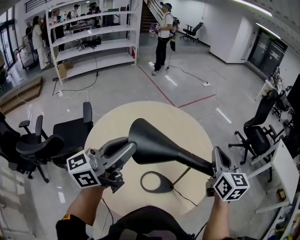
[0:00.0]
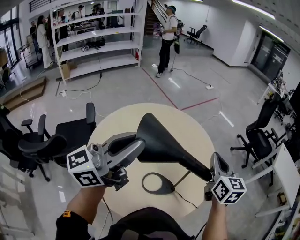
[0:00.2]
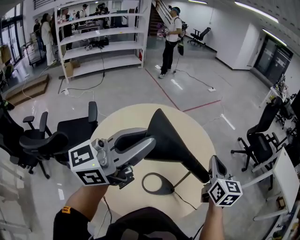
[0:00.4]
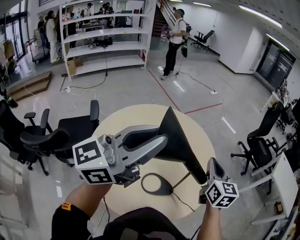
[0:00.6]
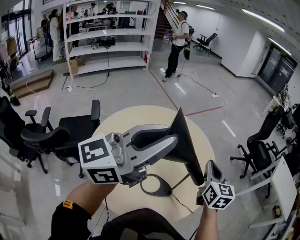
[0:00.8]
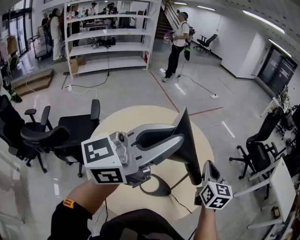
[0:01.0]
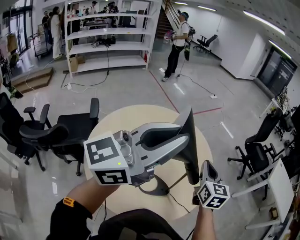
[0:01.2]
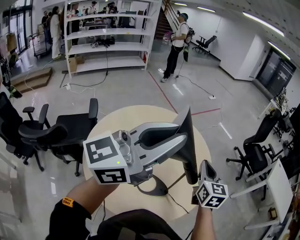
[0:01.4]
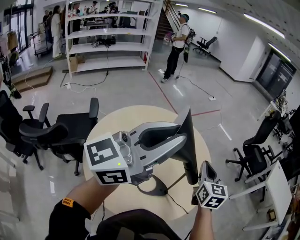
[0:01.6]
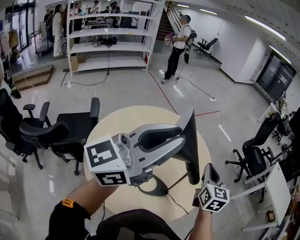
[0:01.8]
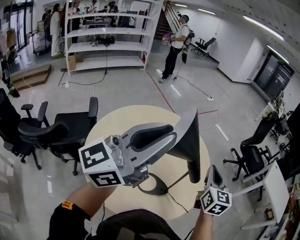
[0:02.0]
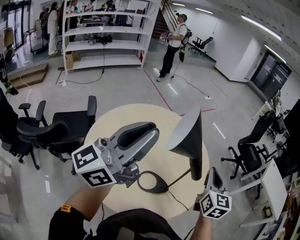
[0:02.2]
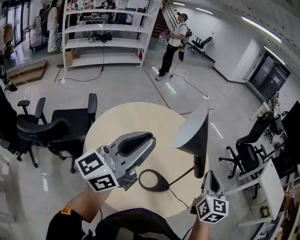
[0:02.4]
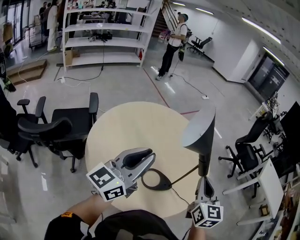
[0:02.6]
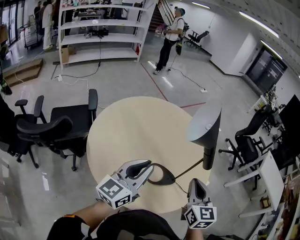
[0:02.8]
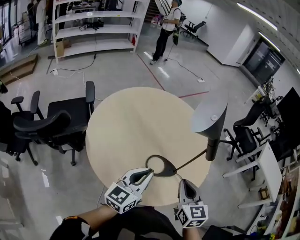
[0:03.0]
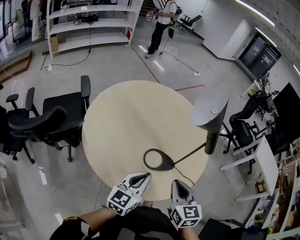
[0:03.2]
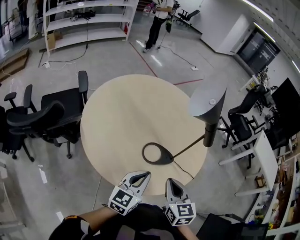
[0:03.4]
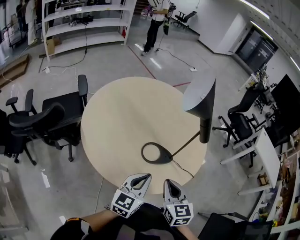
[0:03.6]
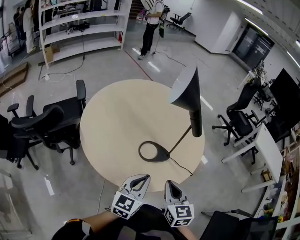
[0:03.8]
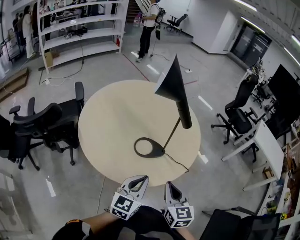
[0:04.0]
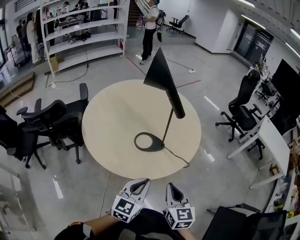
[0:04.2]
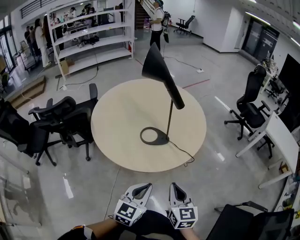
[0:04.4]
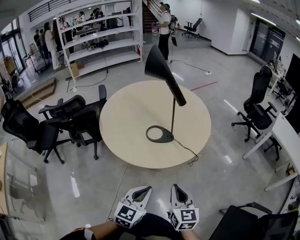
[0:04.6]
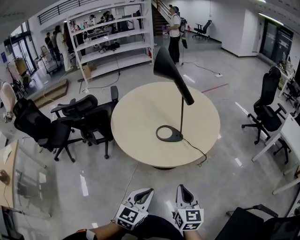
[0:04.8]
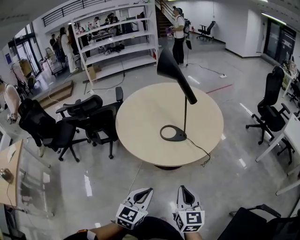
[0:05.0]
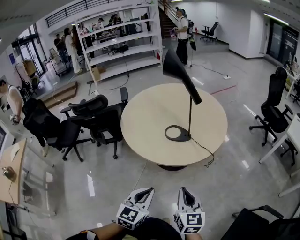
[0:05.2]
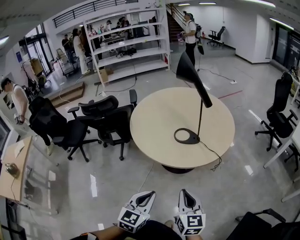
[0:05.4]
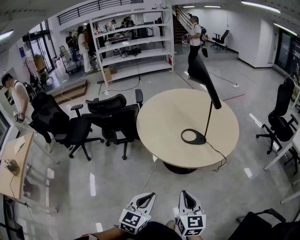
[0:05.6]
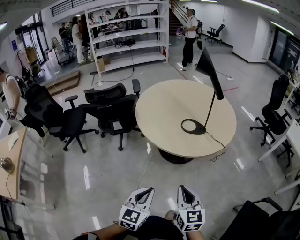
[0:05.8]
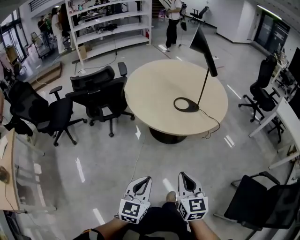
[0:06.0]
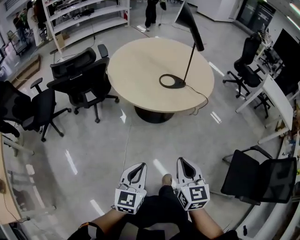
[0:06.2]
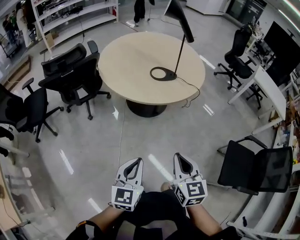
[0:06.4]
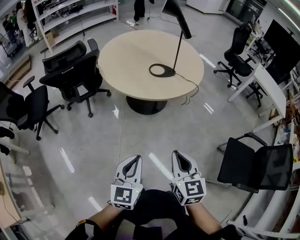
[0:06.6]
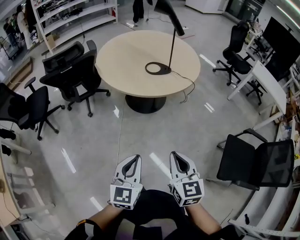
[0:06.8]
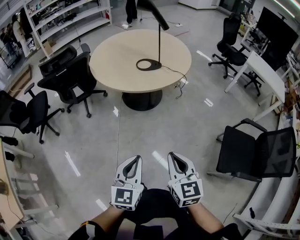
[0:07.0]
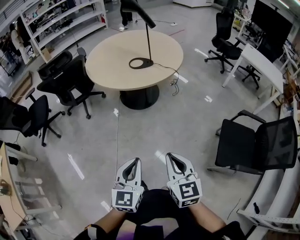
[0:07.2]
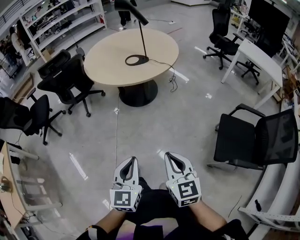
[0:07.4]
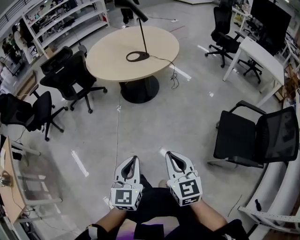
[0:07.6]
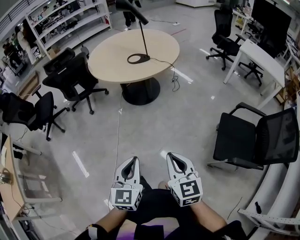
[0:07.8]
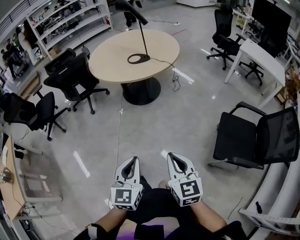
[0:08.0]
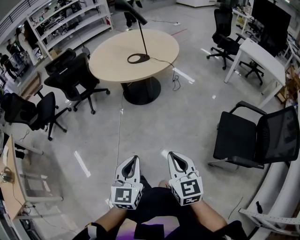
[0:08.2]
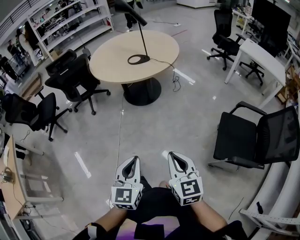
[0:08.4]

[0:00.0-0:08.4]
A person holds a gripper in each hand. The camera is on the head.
0:00.0 to 0:01.4: The right gripper heads downward, covering roughly 5 cm, while the left gripper shifts about 15 cm upward and to the right.
0:01.4 to 0:02.8: The left gripper heads downward, backward and to the left, covering some 30 cm, and rotates approximately 20 degrees, while the right gripper is displaced backward by roughly 20 cm.
0:02.8 to 0:04.2: The grippers both shift backward, to the right and downward by approximately 30 cm. The left gripper swivels about 20 degrees.
0:04.2 to 0:05.6: Both grippers move backward, roughly 25 cm. The left gripper swivels approximately 20 degrees.
0:05.6 to 0:07.0: The two grippers go approximately 25 cm backward.
0:07.0 to 0:08.4: The grippers both shift backward and to the right by some 25 cm.

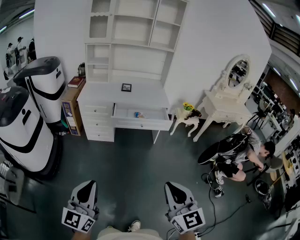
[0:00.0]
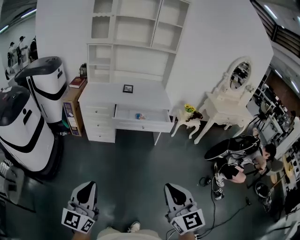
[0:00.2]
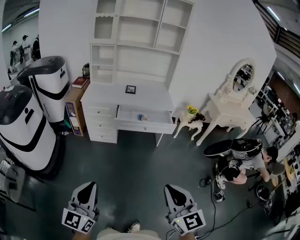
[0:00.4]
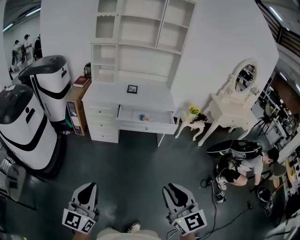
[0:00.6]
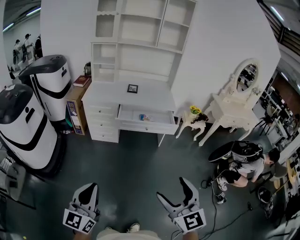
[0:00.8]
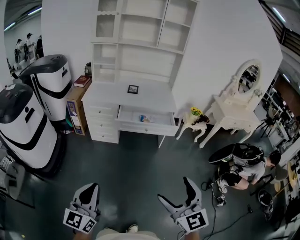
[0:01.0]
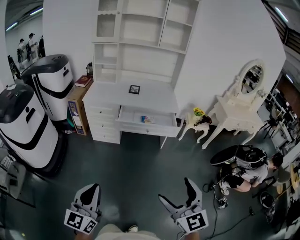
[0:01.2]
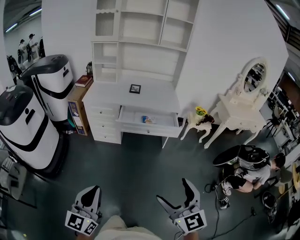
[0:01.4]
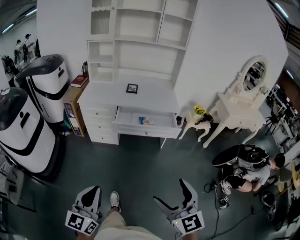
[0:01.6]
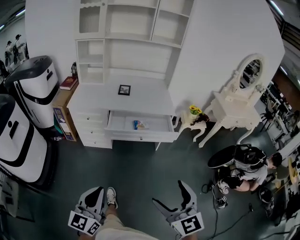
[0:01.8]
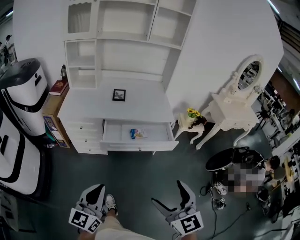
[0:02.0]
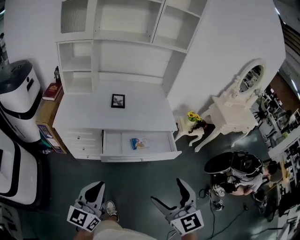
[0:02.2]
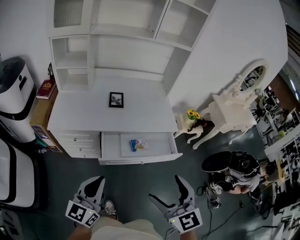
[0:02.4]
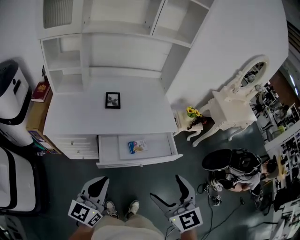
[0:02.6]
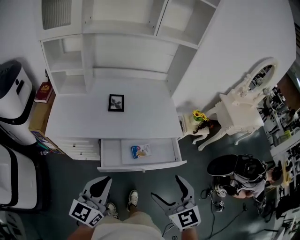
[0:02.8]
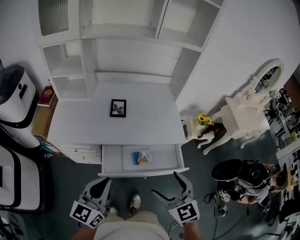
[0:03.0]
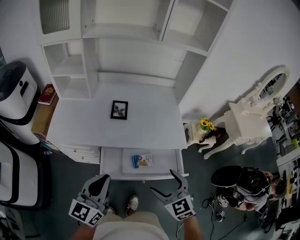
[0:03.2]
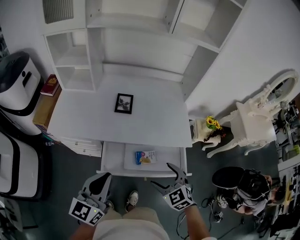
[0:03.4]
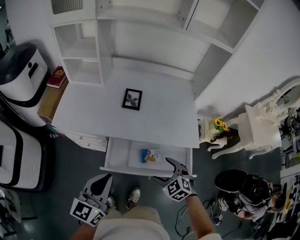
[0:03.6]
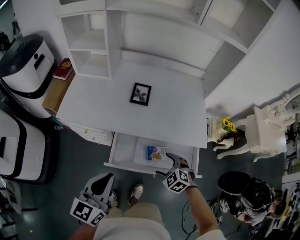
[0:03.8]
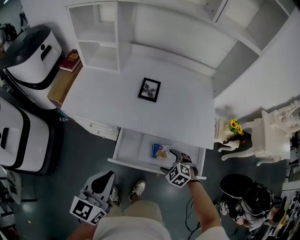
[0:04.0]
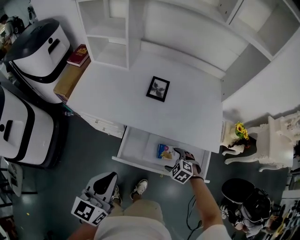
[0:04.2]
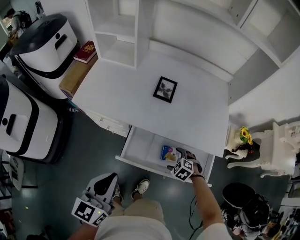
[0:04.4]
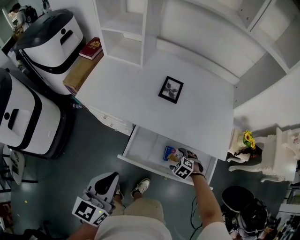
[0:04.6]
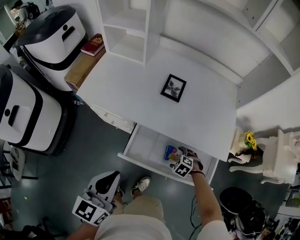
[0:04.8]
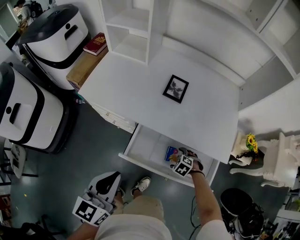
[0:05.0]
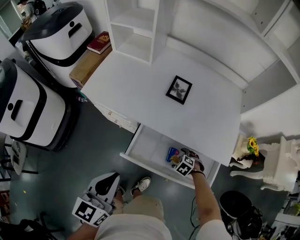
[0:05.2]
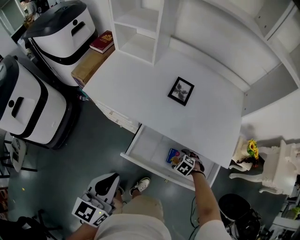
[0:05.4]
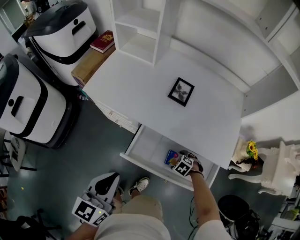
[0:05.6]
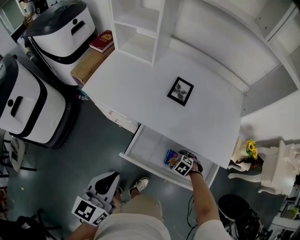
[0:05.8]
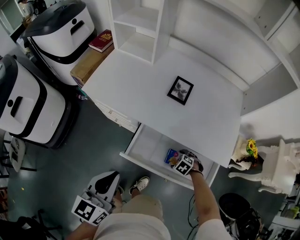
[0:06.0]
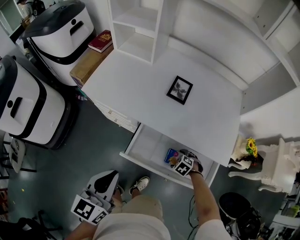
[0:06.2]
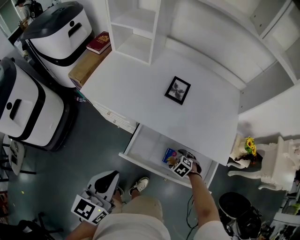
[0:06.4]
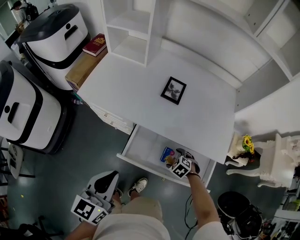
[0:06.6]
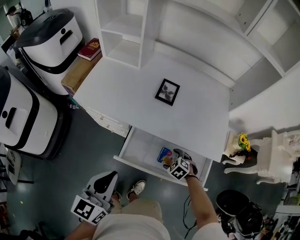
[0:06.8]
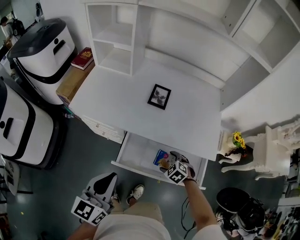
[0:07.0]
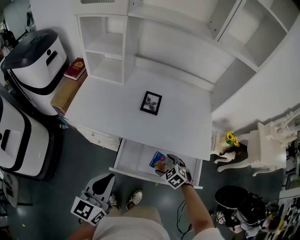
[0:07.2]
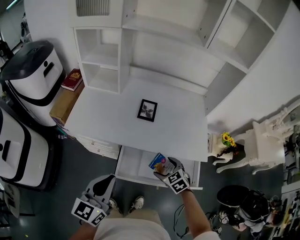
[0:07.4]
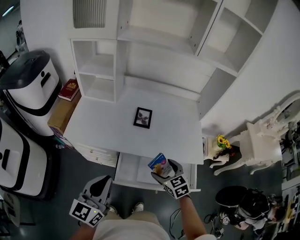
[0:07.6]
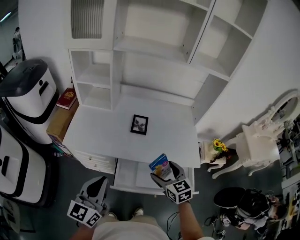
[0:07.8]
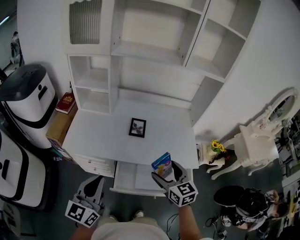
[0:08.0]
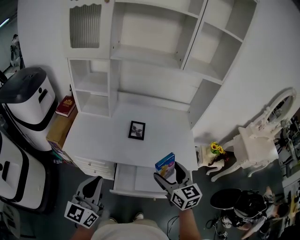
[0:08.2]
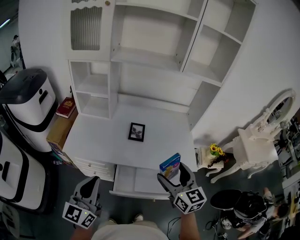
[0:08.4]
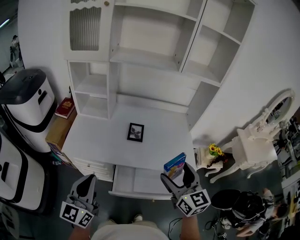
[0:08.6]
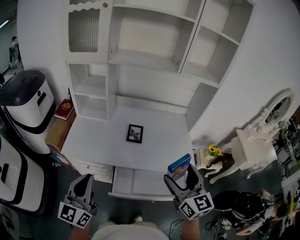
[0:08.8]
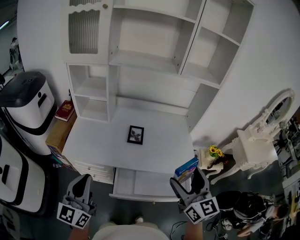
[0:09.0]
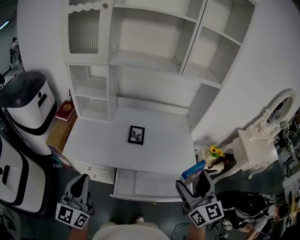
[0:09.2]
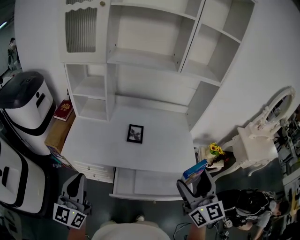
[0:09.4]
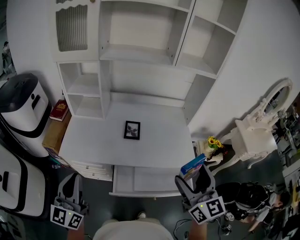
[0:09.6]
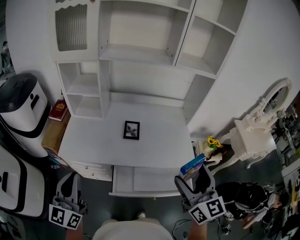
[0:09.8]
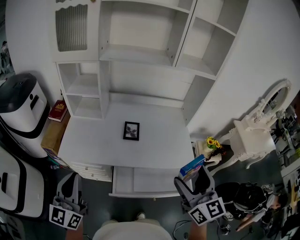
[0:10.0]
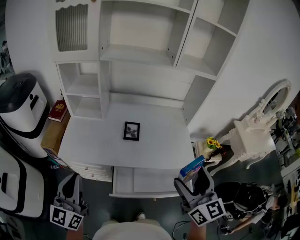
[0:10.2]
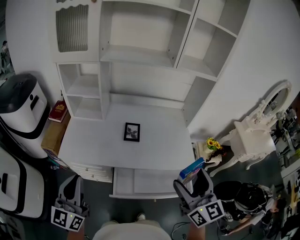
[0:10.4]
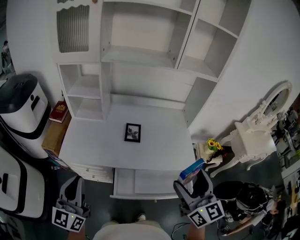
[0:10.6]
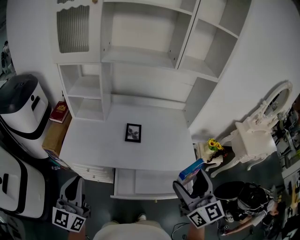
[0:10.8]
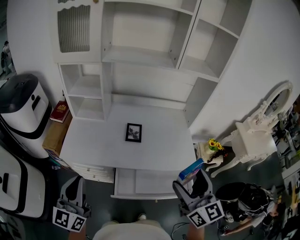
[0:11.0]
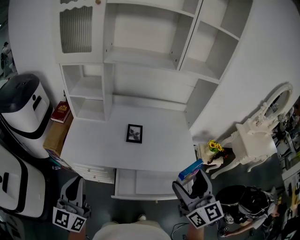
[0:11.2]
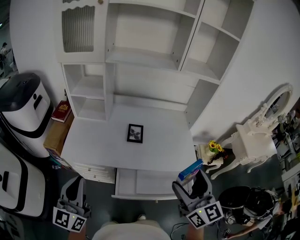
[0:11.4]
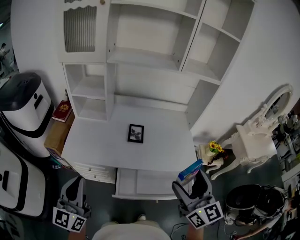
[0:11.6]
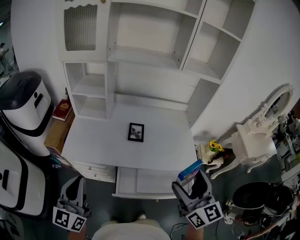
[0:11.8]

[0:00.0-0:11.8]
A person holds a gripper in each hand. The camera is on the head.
0:00.0 to 0:01.4: The two grippers go roughly 10 cm forward and to the right. The right gripper opens up.
0:01.4 to 0:03.0: Both grippers are carried forward, about 60 cm.
0:03.0 to 0:04.4: The right gripper travels downward by approximately 35 cm, and tips its fingers downward by about 50 degrees; the left gripper goes roughly 5 cm downward, and turns by about 20 degrees.
0:04.4 to 0:06.0: The right gripper heads downward, covering approximately 5 cm.
0:06.0 to 0:07.4: The right gripper shifts about 20 cm upward, and tips its fingers upward by about 30 degrees, while the left gripper goes approximately 5 cm upward.
0:07.4 to 0:08.8: The right gripper goes approximately 30 cm upward, and points its fingers roughly 50 degrees further upward. The left gripper shifts approximately 10 cm upward and to the left.
0:08.8 to 0:11.8: The grippers stay close to where they were, moving slightly.

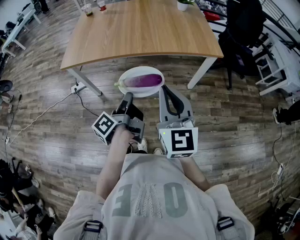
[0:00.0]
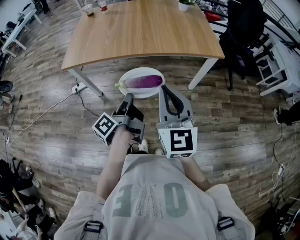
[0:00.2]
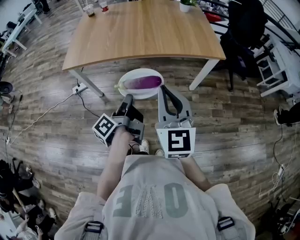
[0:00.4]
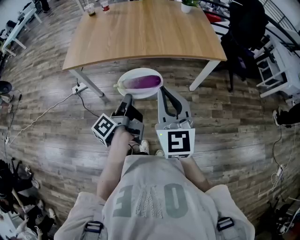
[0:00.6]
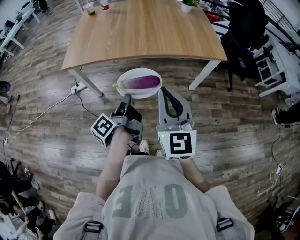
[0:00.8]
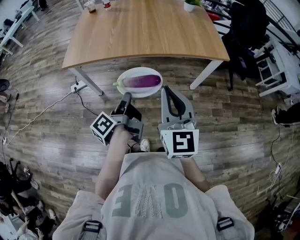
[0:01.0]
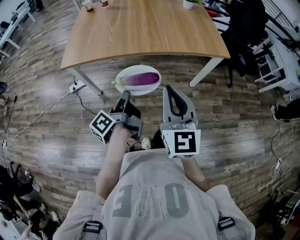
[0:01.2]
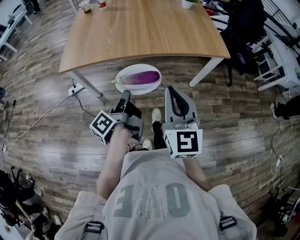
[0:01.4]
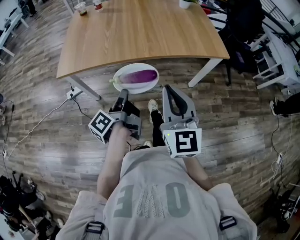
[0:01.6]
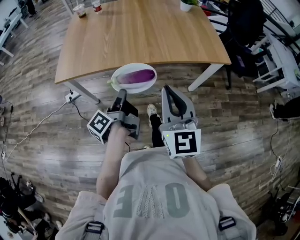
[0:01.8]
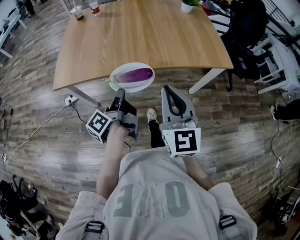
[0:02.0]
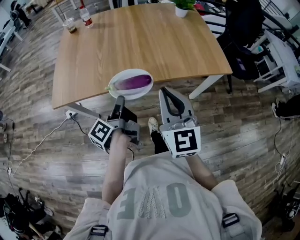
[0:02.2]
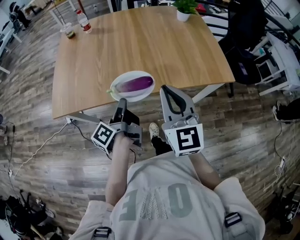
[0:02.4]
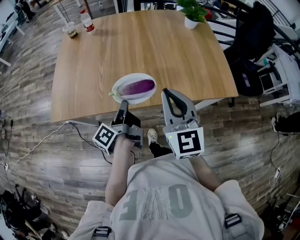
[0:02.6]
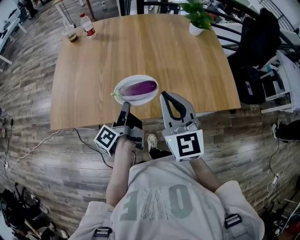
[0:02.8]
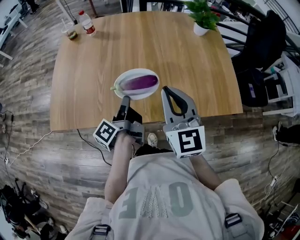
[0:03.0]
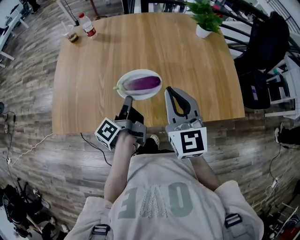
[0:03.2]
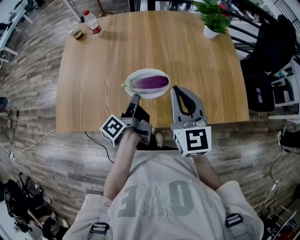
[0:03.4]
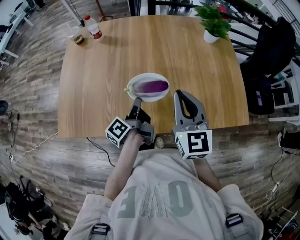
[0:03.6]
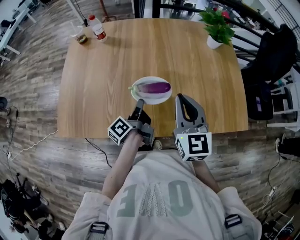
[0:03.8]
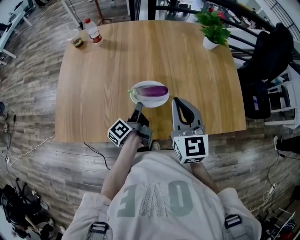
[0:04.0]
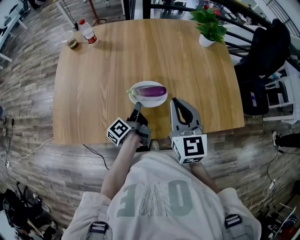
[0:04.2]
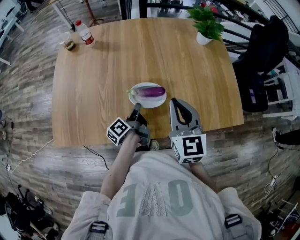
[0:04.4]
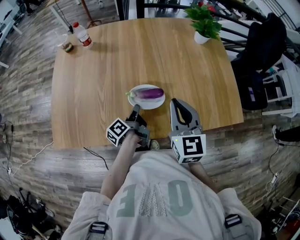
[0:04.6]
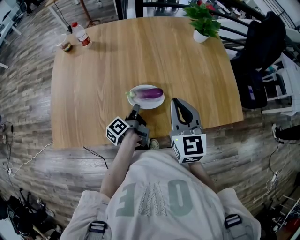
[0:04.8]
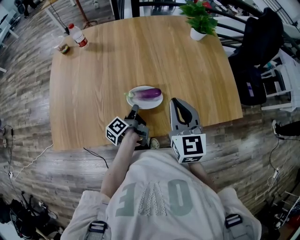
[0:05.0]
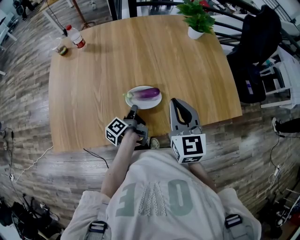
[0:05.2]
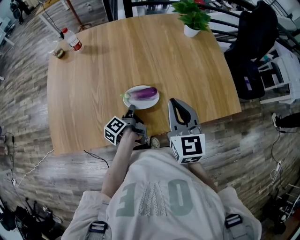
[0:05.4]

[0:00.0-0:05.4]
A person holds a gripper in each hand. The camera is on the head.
0:00.0 to 0:01.4: The right gripper ends up about 10 cm from where it was.
0:01.4 to 0:02.8: The right gripper moves about 35 cm.
0:02.8 to 0:04.0: The right gripper ends up approximately 10 cm from where it was.
